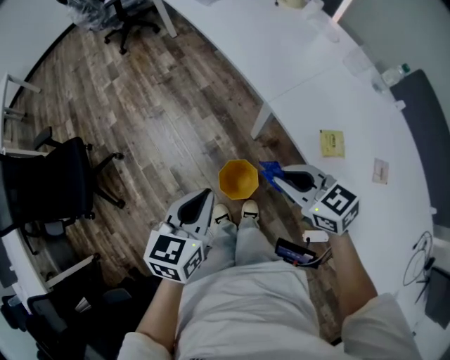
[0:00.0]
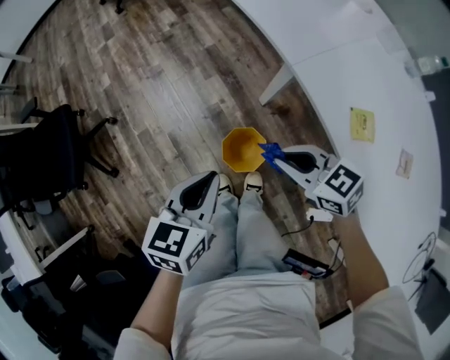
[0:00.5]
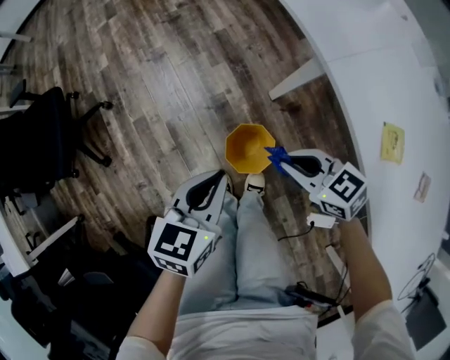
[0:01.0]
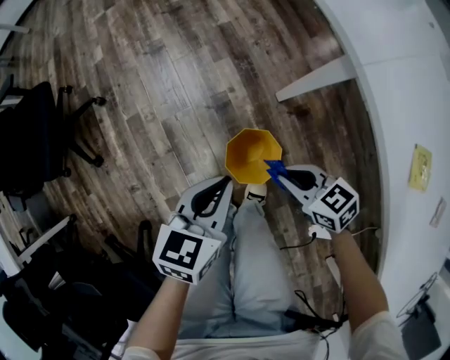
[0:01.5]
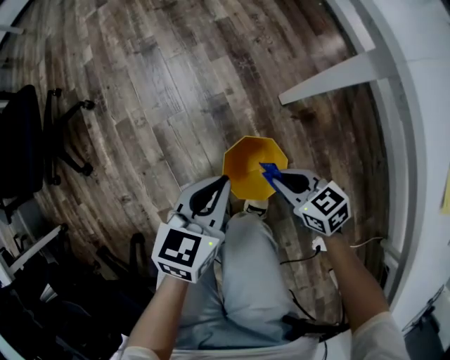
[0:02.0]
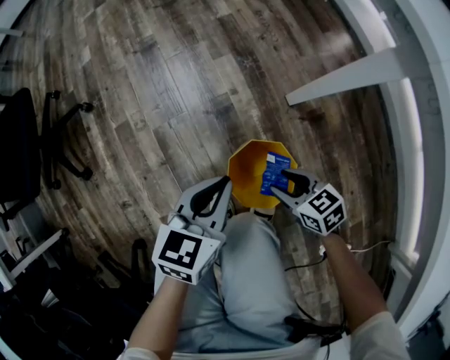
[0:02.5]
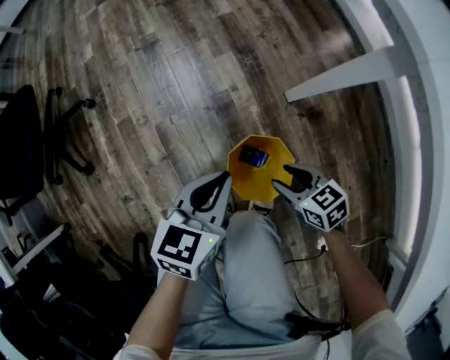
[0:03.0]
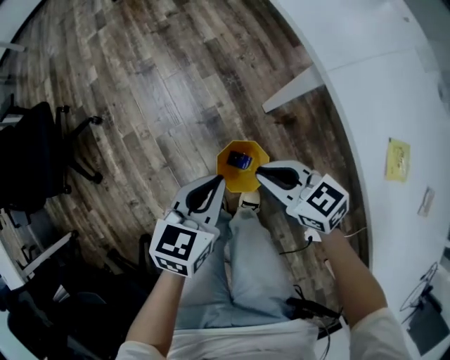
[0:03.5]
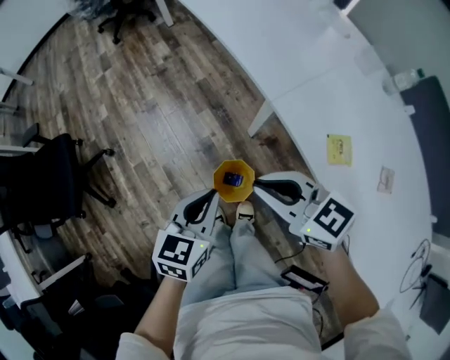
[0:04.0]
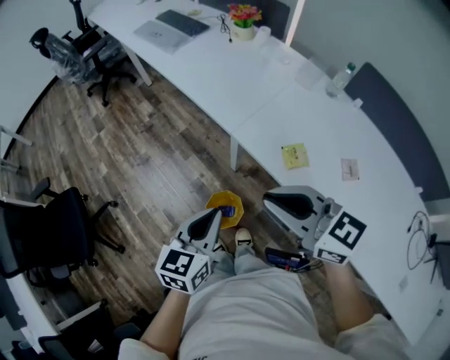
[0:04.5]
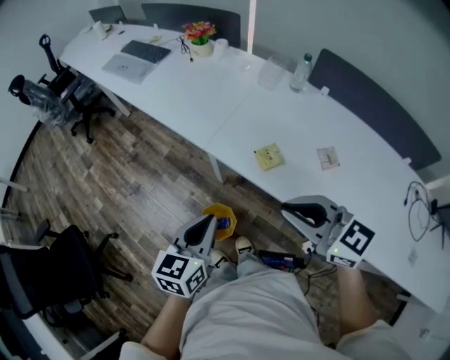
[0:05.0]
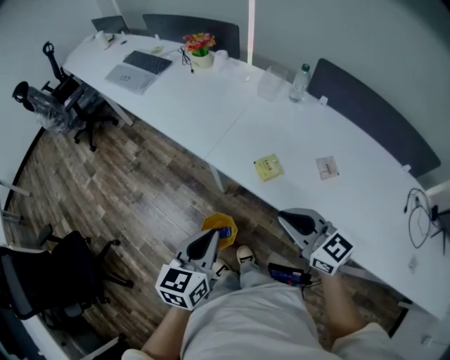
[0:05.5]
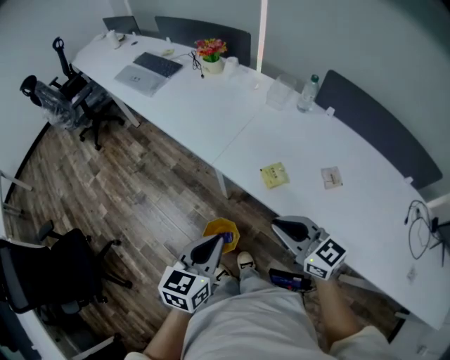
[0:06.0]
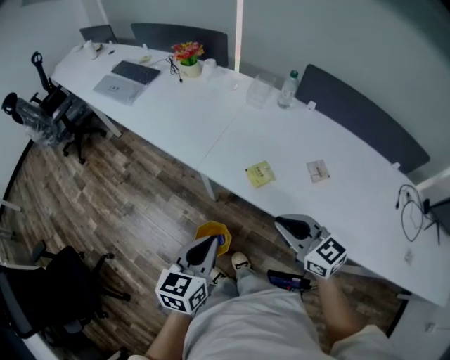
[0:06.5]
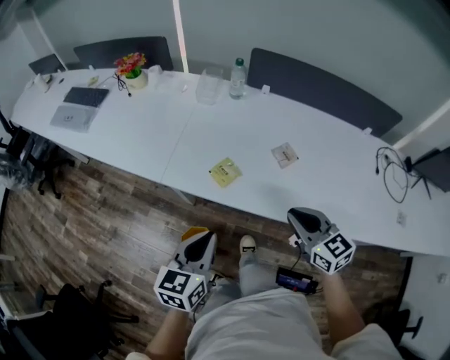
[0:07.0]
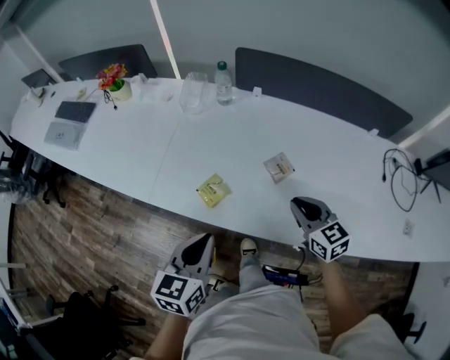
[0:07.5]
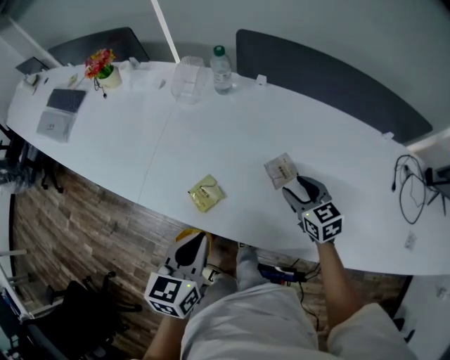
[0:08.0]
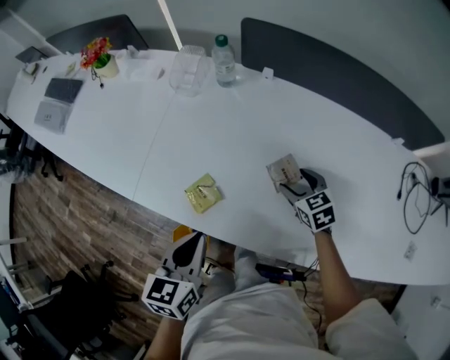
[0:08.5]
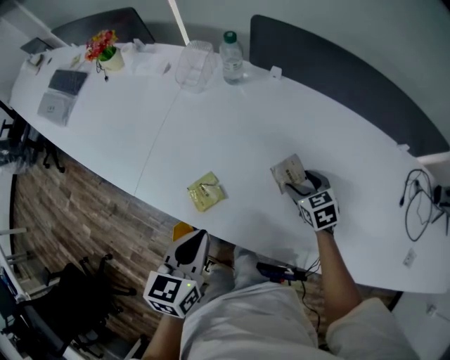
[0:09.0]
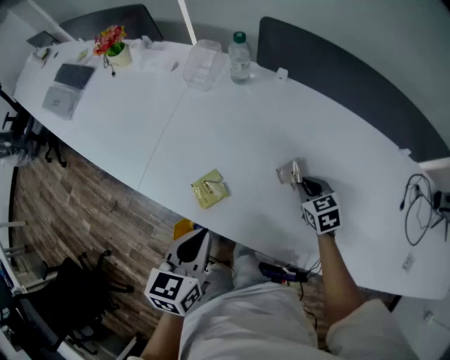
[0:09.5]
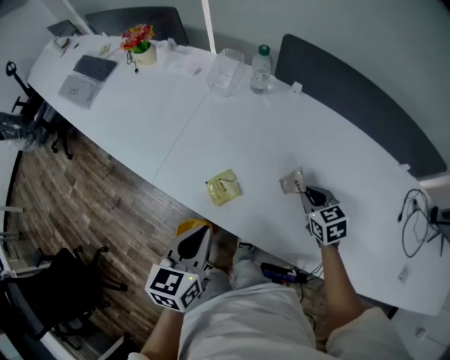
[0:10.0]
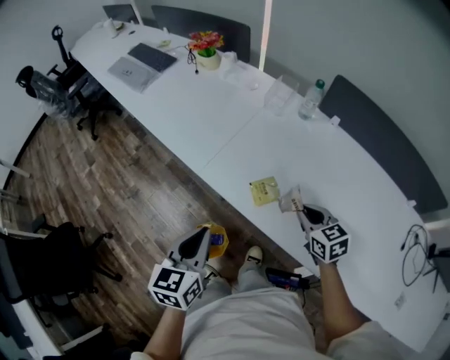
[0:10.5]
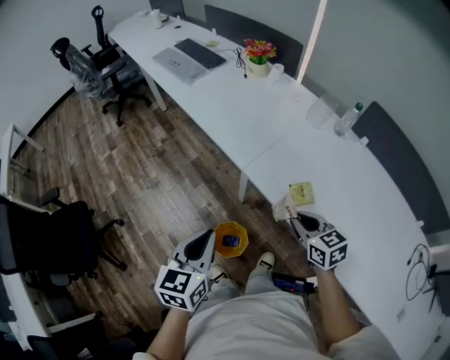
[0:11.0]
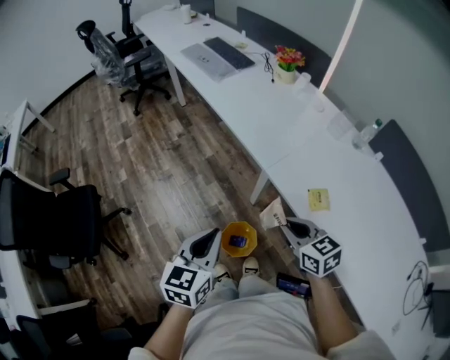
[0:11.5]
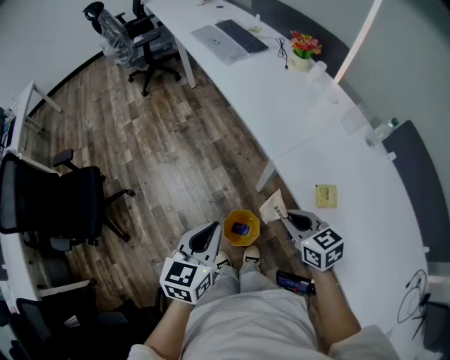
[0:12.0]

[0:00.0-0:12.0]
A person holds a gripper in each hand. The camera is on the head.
0:00.0 to 0:02.0: Both grippers move downward, roughly 40 cm.
0:02.0 to 0:04.0: The left gripper shifts about 30 cm upward; the right gripper goes approximately 40 cm upward, turns by about 30 degrees, and opens, then closes again.
0:04.0 to 0:06.0: The right gripper moves approximately 20 cm, and changes its angle by some 30 degrees. The left gripper moves upward, approximately 15 cm, and turns by roughly 20 degrees.
0:06.0 to 0:08.0: The right gripper moves some 40 cm, changes its angle by roughly 40 degrees, and opens up; the left gripper ends up about 25 cm from where it was.
0:08.0 to 0:10.0: The right gripper reaches some 10 cm downward, then returns, and closes its fingers.
0:10.0 to 0:12.0: The right gripper moves approximately 40 cm, and swivels approximately 40 degrees. The left gripper ends up approximately 35 cm from where it was, and changes its angle by roughly 30 degrees.

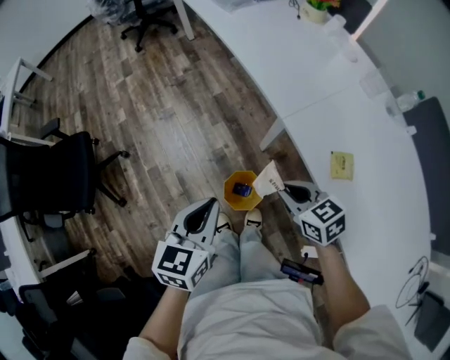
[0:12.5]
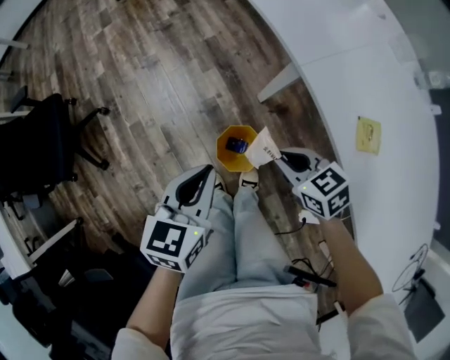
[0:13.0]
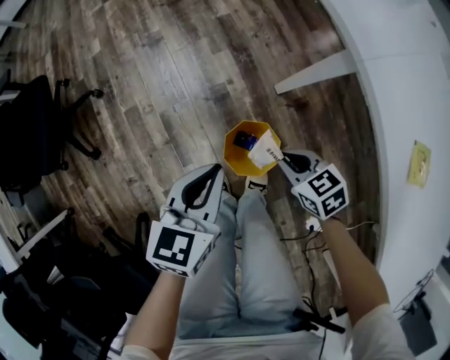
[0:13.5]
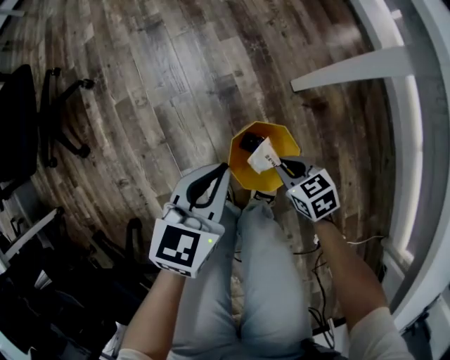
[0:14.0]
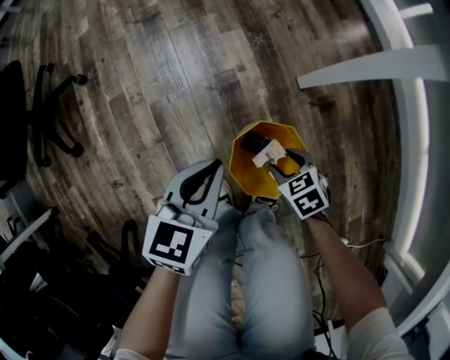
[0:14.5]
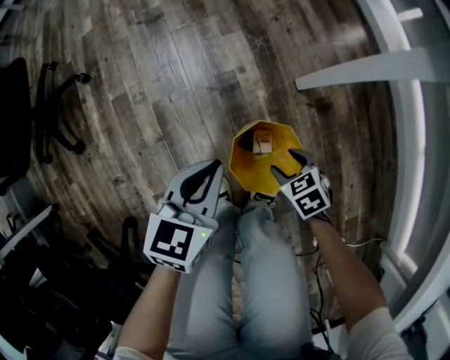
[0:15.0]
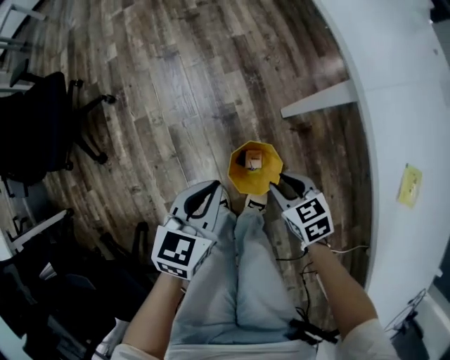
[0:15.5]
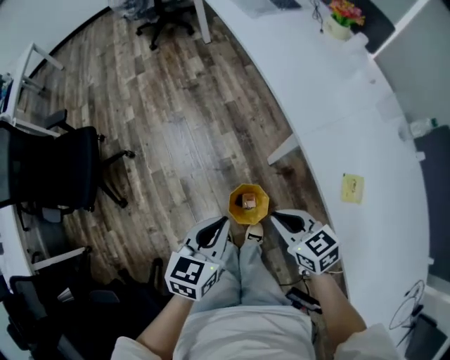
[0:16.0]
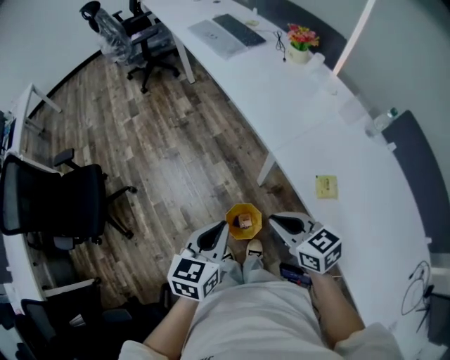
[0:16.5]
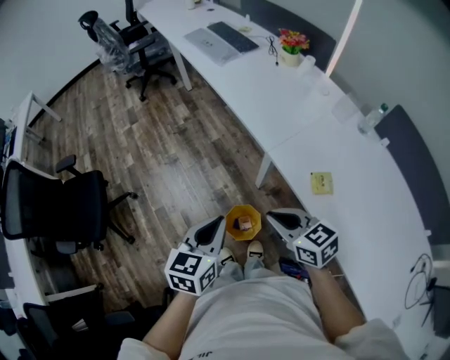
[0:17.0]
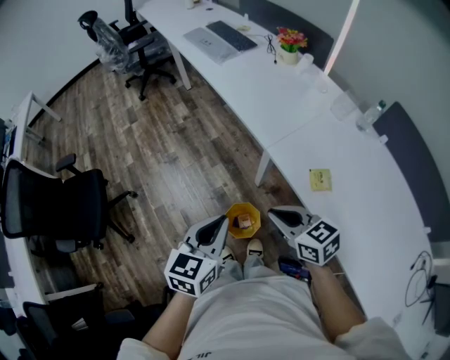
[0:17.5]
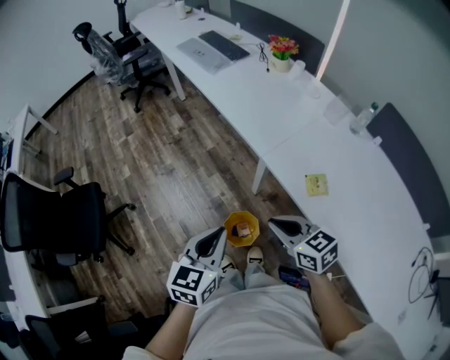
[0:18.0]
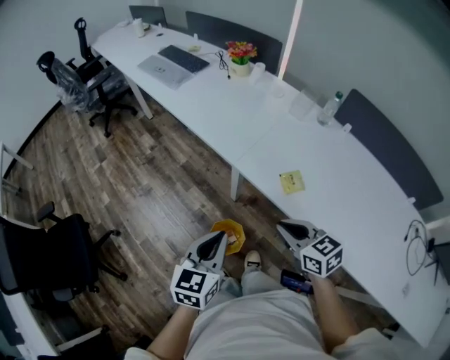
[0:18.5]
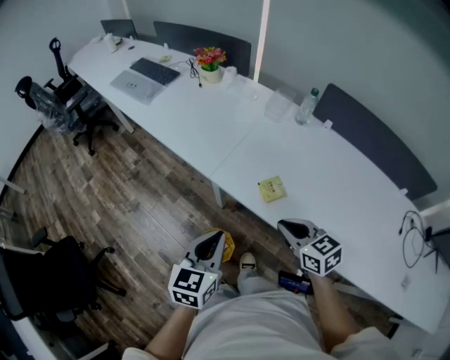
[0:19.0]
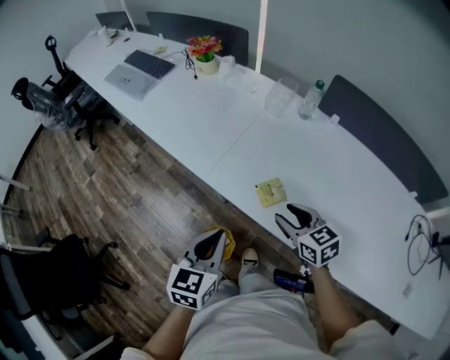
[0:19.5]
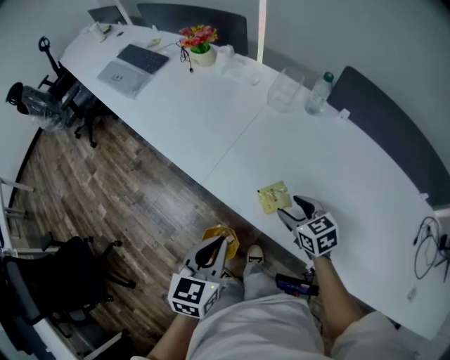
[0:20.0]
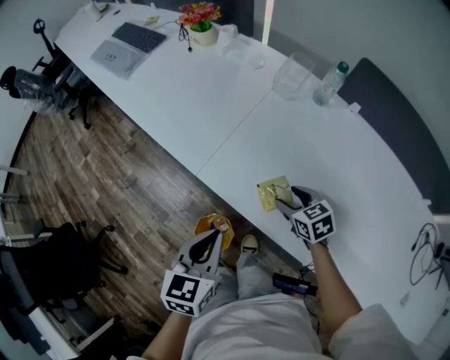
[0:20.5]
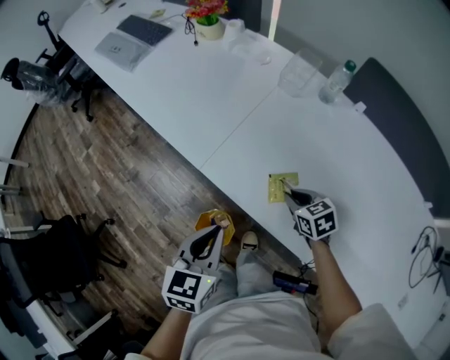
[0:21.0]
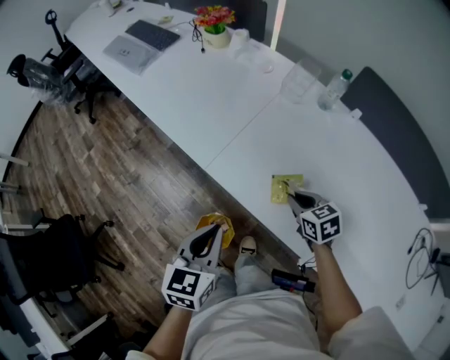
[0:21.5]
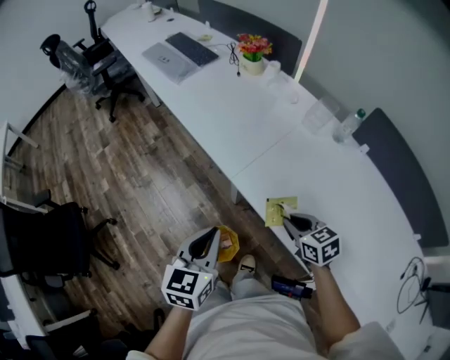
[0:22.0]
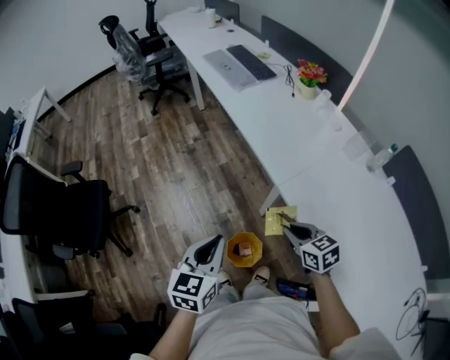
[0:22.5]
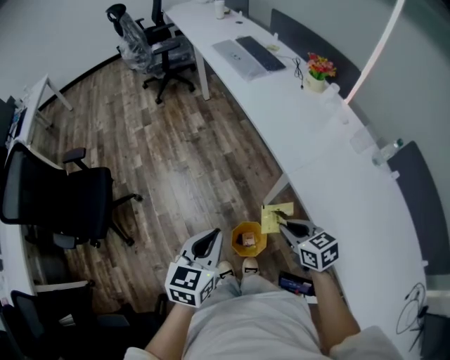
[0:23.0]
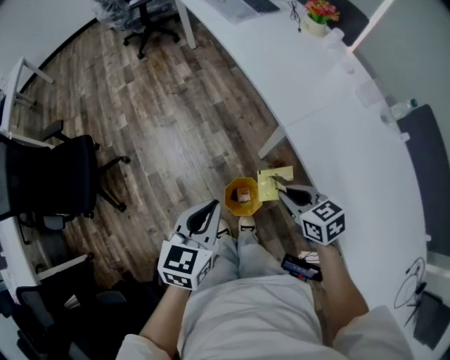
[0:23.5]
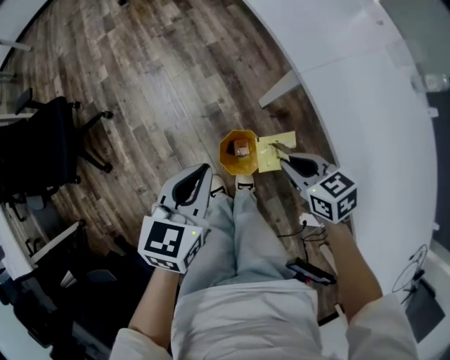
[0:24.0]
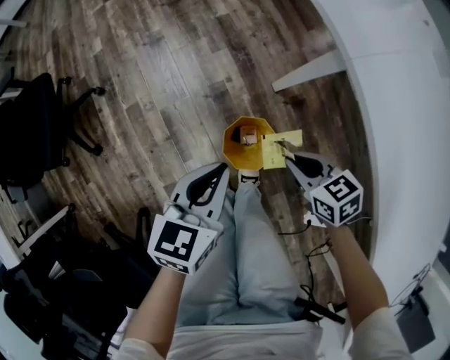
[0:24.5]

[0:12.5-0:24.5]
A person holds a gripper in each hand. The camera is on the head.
0:12.5 to 0:14.5: The grippers both shift downward by approximately 50 cm. The right gripper rotates approximately 30 degrees, and opens its fingers.
0:14.5 to 0:16.5: Both grippers move upward, approximately 60 cm. The right gripper tilts its fingers roughly 40 degrees upward, and closes.
0:16.5 to 0:18.5: The right gripper goes roughly 10 cm to the right, and swivels about 20 degrees, while the left gripper is displaced to the right by some 5 cm.
0:18.5 to 0:20.5: The right gripper goes about 30 cm forward, downward and to the right, and opens its fingers. The left gripper heads forward, to the right and downward, covering approximately 20 cm.
0:20.5 to 0:22.5: The left gripper goes some 20 cm to the left, and swivels some 30 degrees. The right gripper shifts about 25 cm to the left and upward, swivels roughly 20 degrees, and closes up.
0:22.5 to 0:24.5: The two grippers go about 30 cm downward.

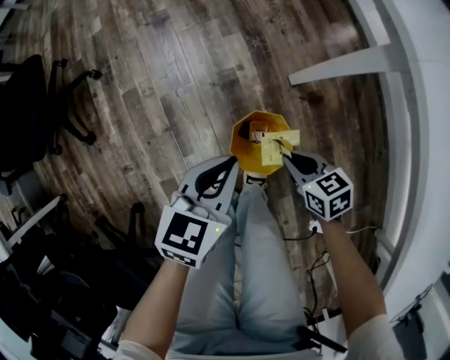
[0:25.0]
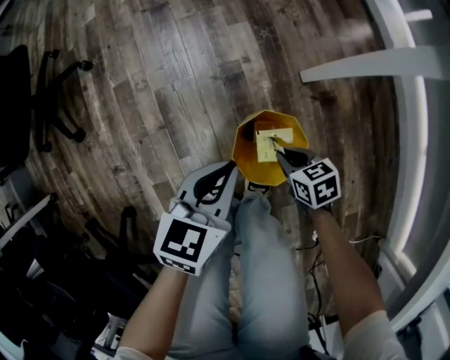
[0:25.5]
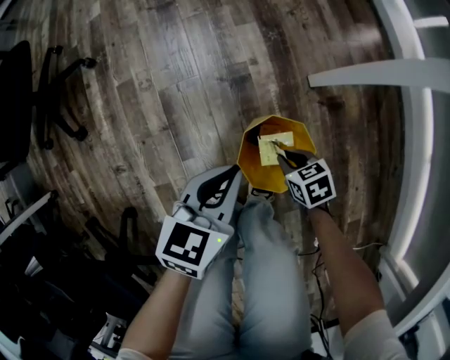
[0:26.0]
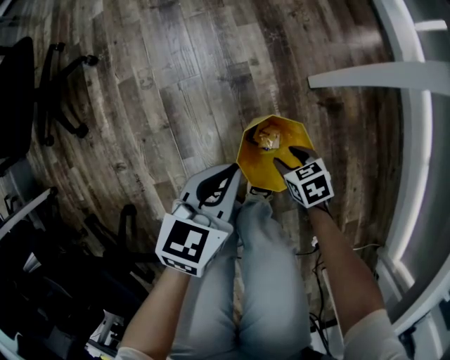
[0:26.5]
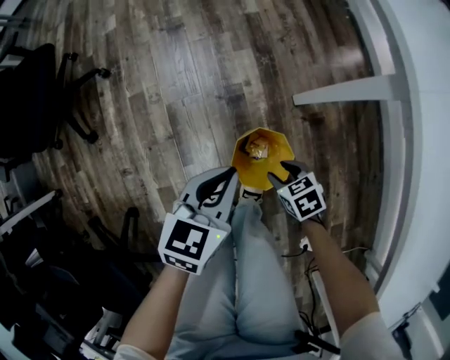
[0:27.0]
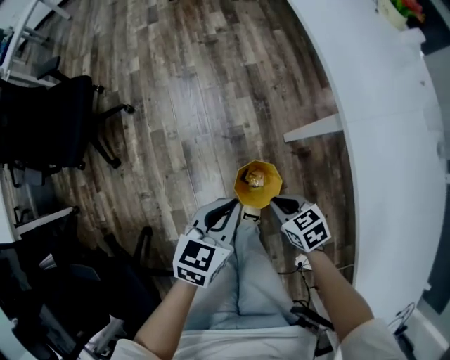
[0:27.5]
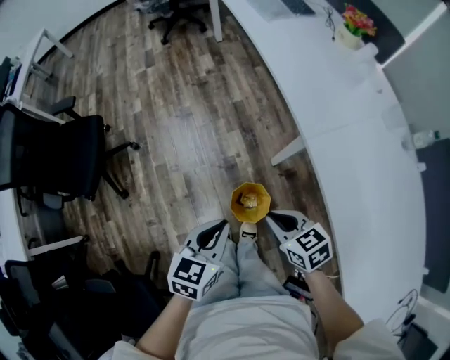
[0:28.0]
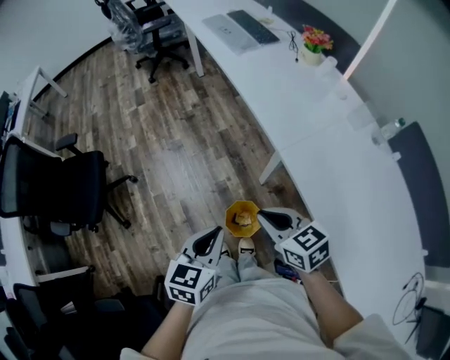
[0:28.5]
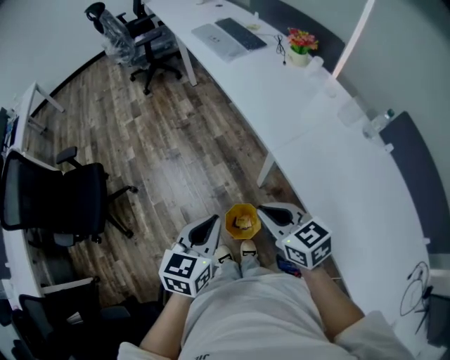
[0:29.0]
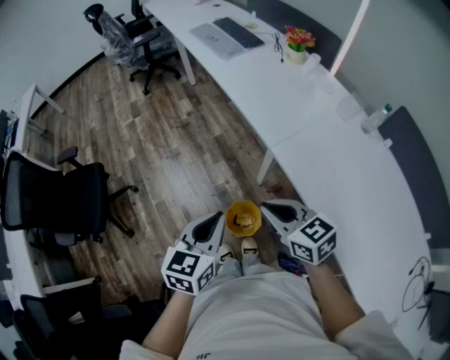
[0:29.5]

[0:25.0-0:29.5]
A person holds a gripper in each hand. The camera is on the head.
0:25.0 to 0:27.0: The left gripper travels downward and back again, about 10 cm each way, while the right gripper goes downward and returns, about 20 cm each way, and opens.
0:27.0 to 0:29.5: The two grippers go roughly 50 cm upward. The right gripper tips its fingers upward by roughly 40 degrees, and closes.
